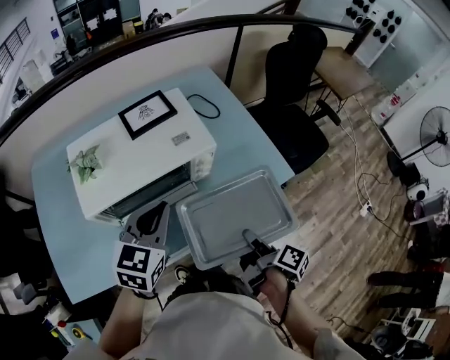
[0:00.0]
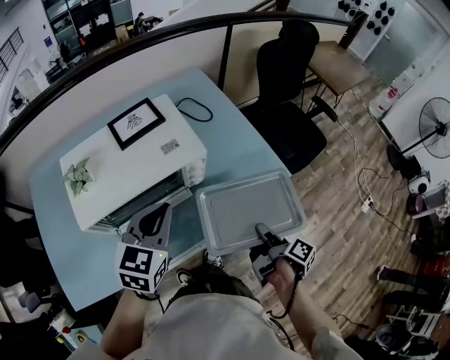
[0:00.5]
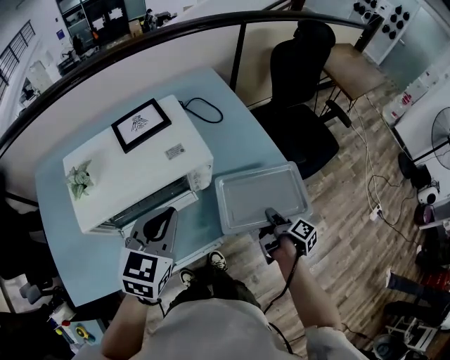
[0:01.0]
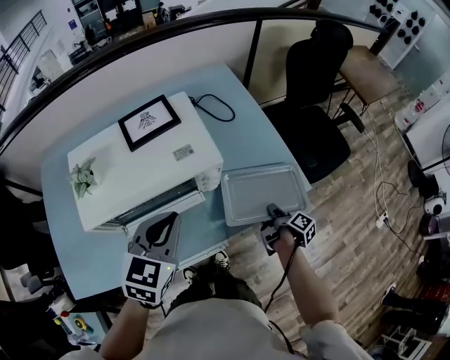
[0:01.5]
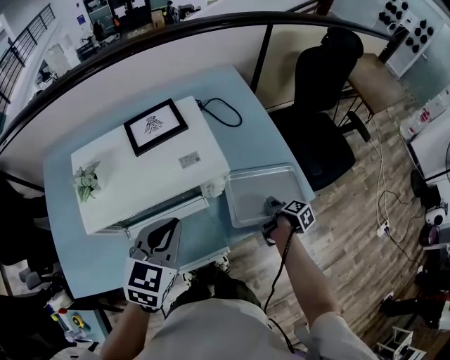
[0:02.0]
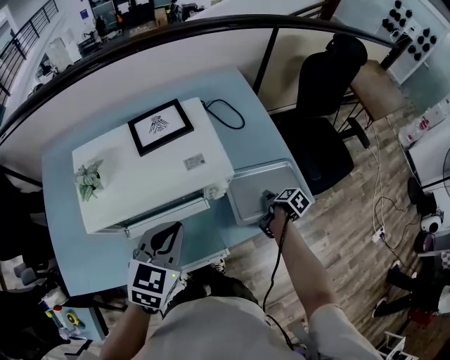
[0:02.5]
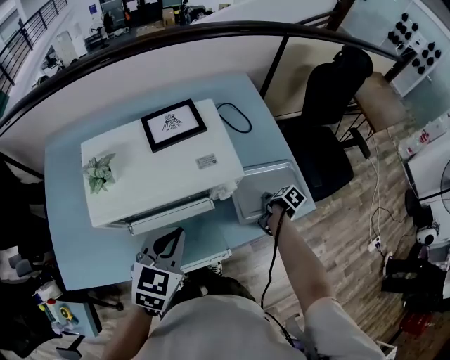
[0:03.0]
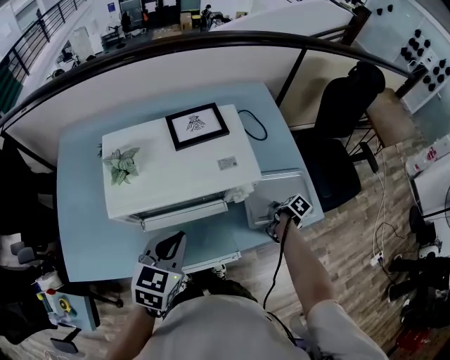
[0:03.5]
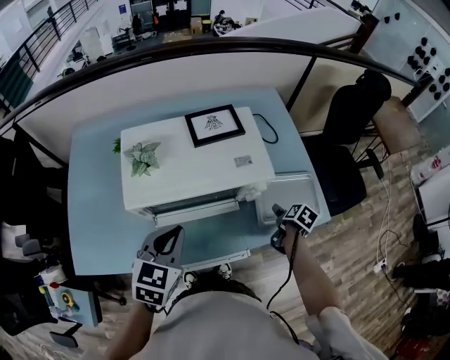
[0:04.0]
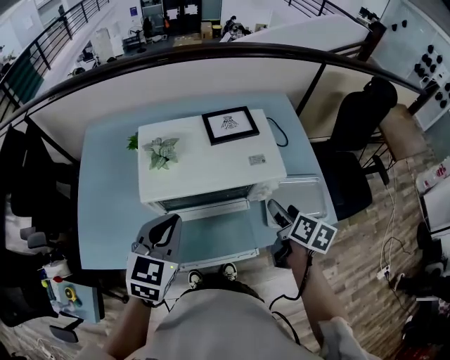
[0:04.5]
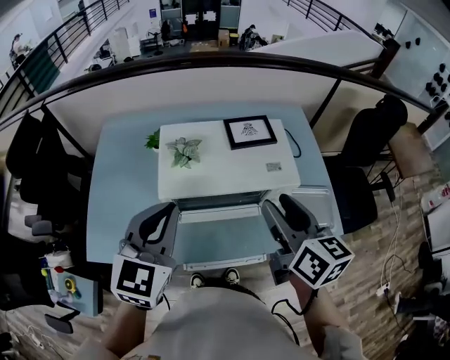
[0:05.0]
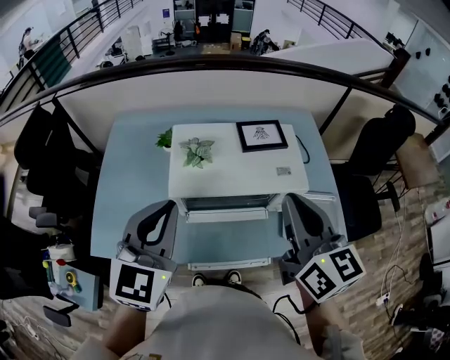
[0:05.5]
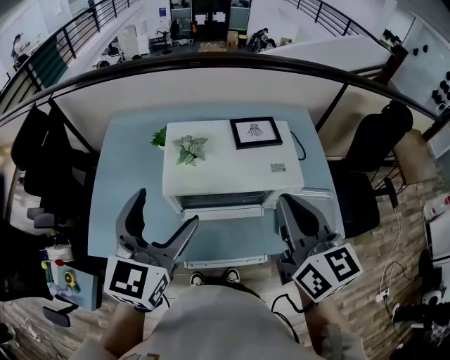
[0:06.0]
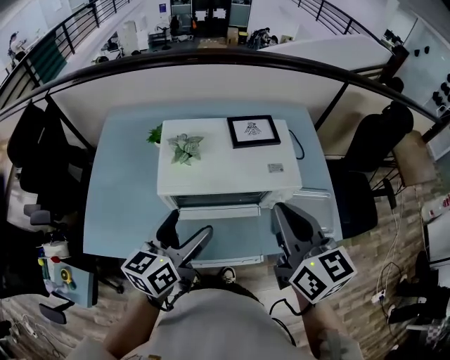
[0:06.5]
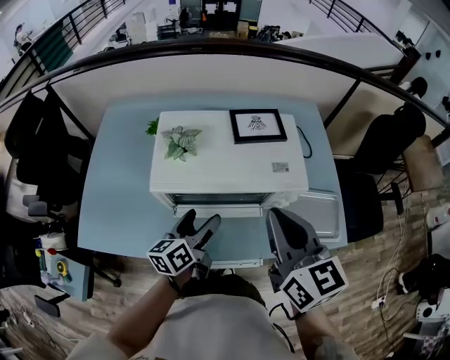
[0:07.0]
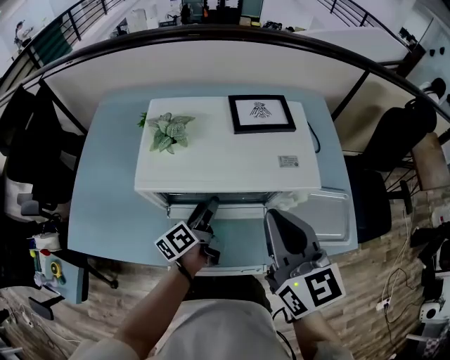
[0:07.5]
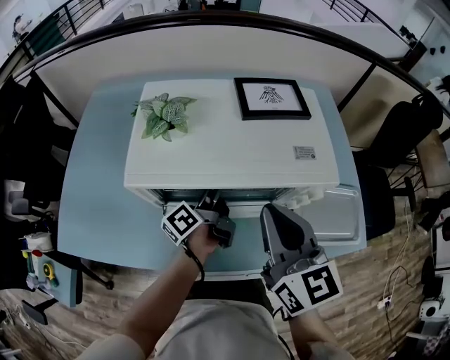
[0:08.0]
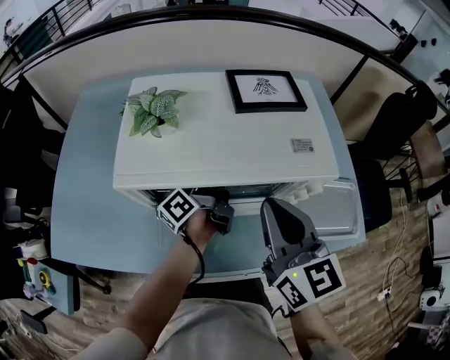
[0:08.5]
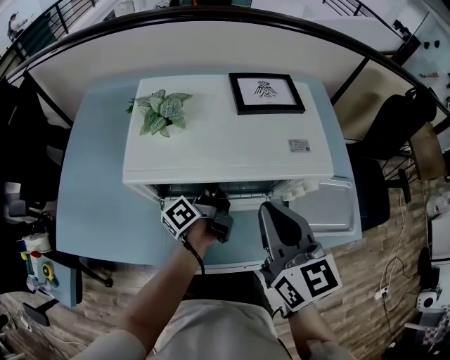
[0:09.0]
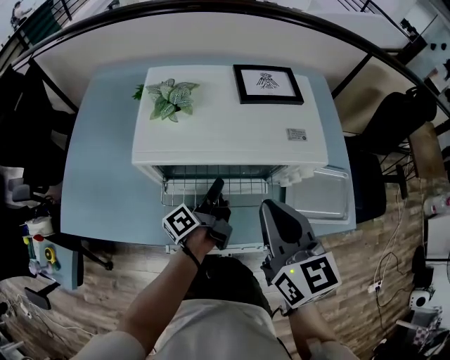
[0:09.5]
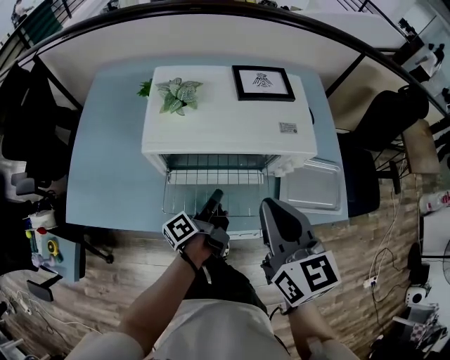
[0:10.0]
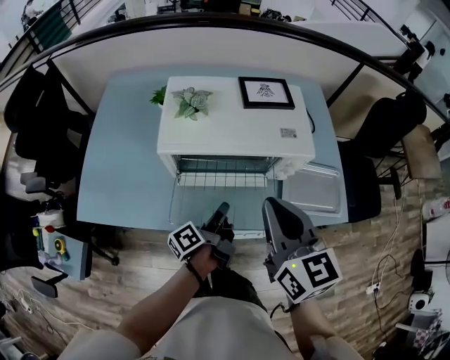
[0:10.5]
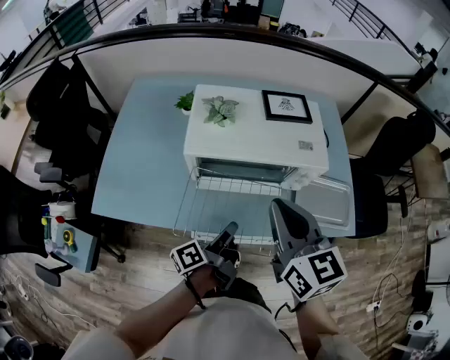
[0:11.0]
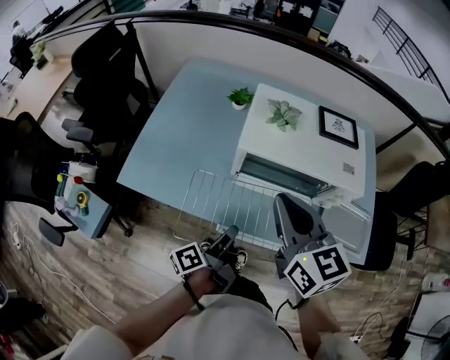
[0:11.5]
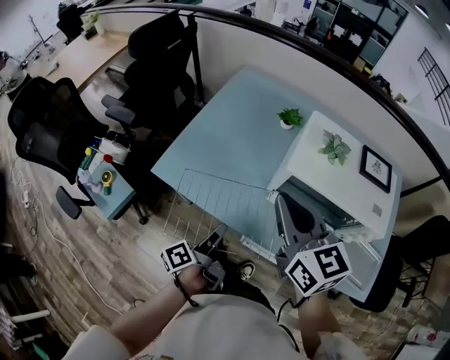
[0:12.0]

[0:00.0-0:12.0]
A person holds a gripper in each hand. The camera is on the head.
0:00.0 to 0:02.0: The right gripper heads forward, downward and to the right, covering some 30 cm, rotates roughly 30 degrees, and opens. Meanwhile the left gripper changes place by about 5 cm.
0:02.0 to 0:04.0: The right gripper goes some 5 cm to the left, rotates roughly 40 degrees, and opens. Meanwhile the left gripper travels to the left and backward by approximately 10 cm.
0:04.0 to 0:06.0: The left gripper is displaced upward by approximately 15 cm, turns by about 30 degrees, and opens. Meanwhile the right gripper heads upward, covering approximately 40 cm, points its fingers about 50 degrees further upward, and closes its fingers.
0:06.0 to 0:08.0: The right gripper moves downward, approximately 20 cm. The left gripper travels downward and forward by some 40 cm, rolls counterclockwise, seen from behind, by some 80 degrees, and closes up.
0:08.0 to 0:10.0: The left gripper shifts about 15 cm backward, and closes its fingers. The right gripper heads backward and upward, covering about 10 cm.
0:10.0 to 0:12.0: The left gripper moves approximately 30 cm, and turns by about 20 degrees; the right gripper changes place by approximately 25 cm, and swivels roughly 30 degrees.

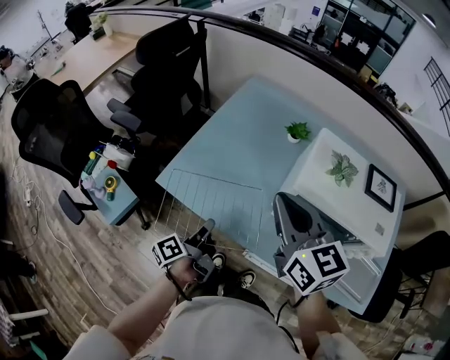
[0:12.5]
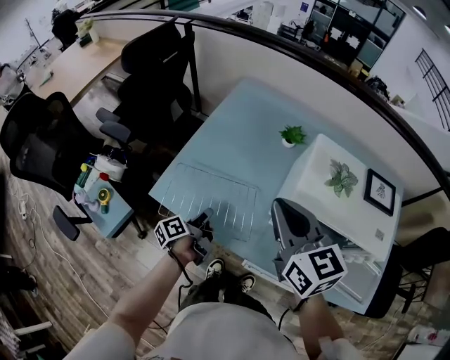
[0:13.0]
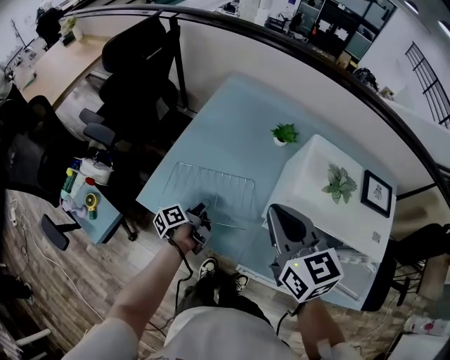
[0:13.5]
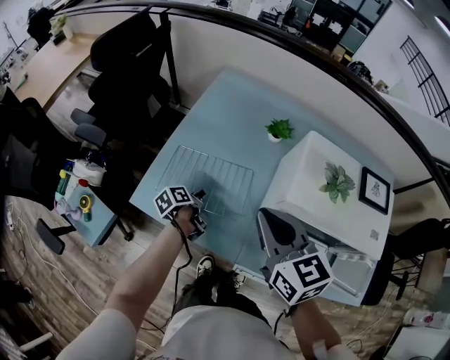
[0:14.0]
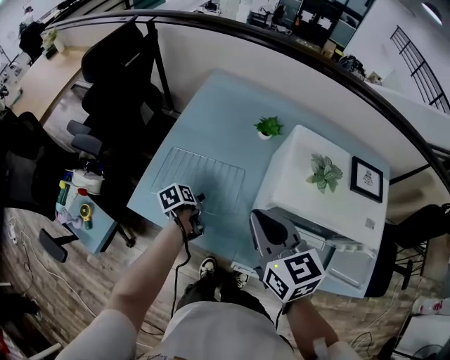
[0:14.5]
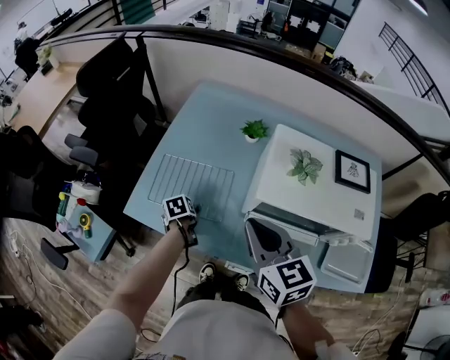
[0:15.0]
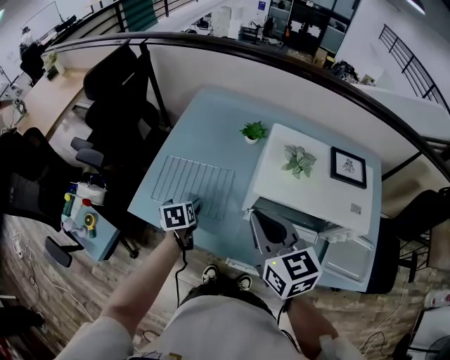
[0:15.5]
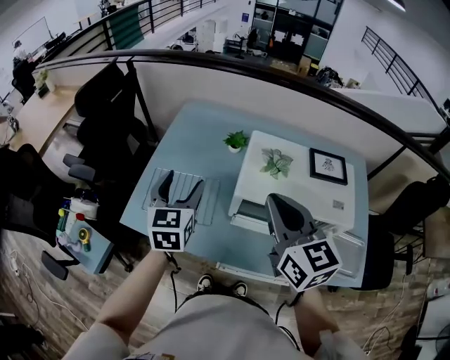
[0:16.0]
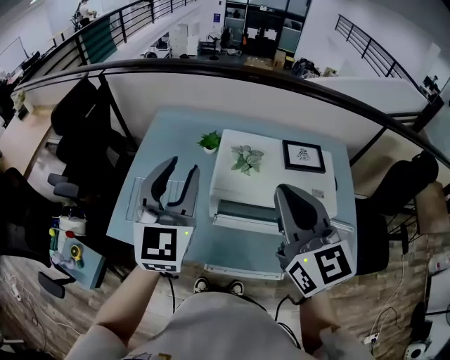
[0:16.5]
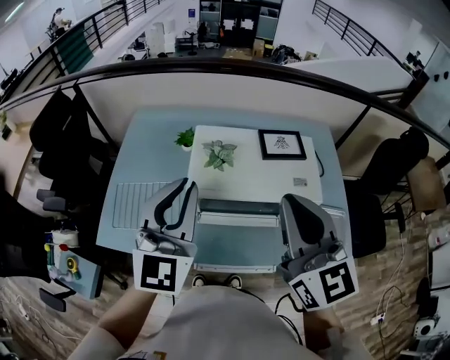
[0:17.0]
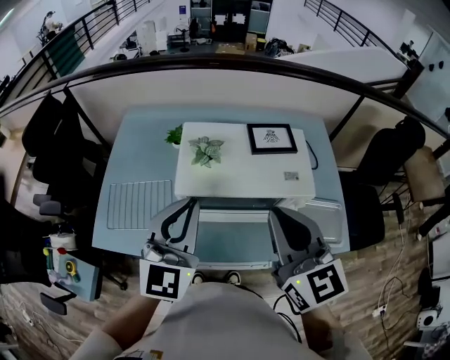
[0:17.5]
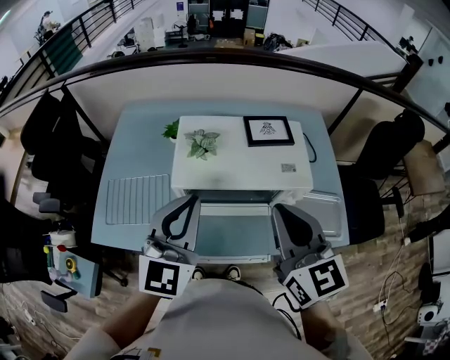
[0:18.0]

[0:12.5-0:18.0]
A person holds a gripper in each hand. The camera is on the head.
0:12.5 to 0:14.5: The right gripper shifts about 5 cm downward. The left gripper moves forward and downward, approximately 20 cm, tips its fingers downward by roughly 40 degrees, and opens its fingers.
0:14.5 to 0:16.0: The right gripper shifts some 15 cm upward and to the right. Meanwhile the left gripper is displaced upward by roughly 35 cm, and angles its fingers upward, by some 40 degrees.
0:16.0 to 0:18.0: Both grippers move to the right and backward, about 20 cm. The left gripper rotates about 30 degrees, and closes up.

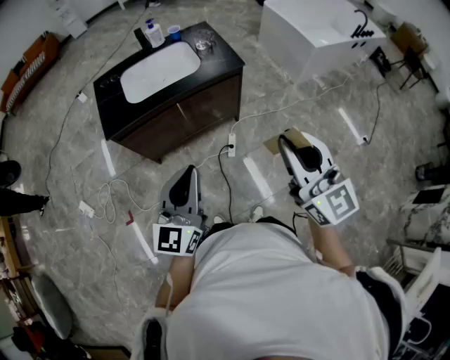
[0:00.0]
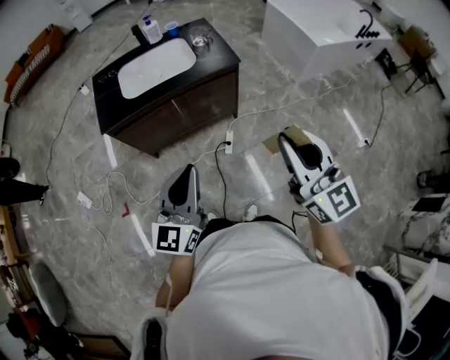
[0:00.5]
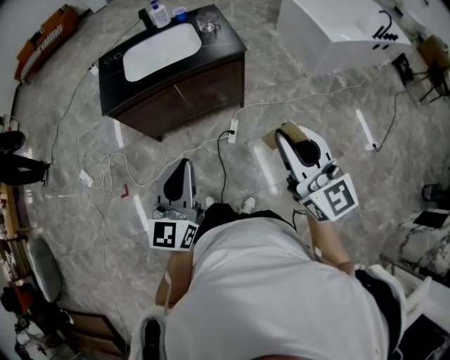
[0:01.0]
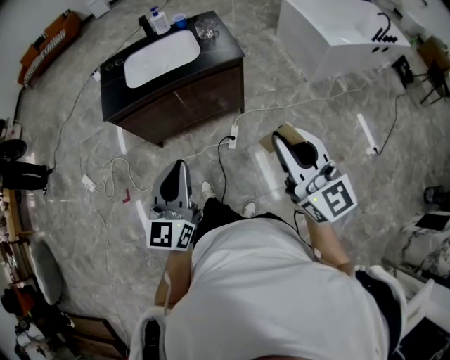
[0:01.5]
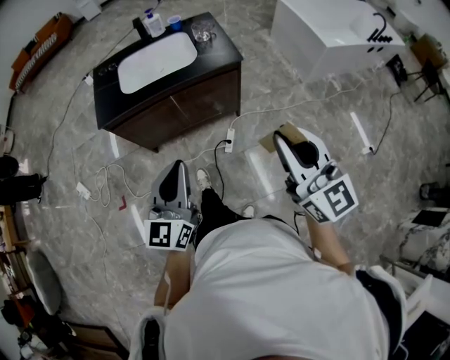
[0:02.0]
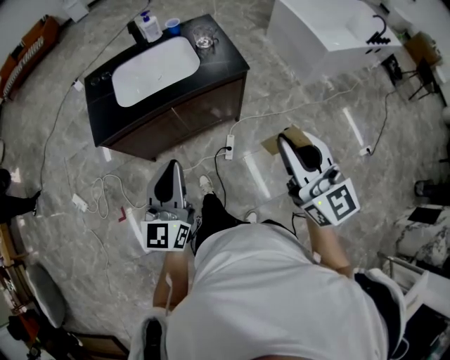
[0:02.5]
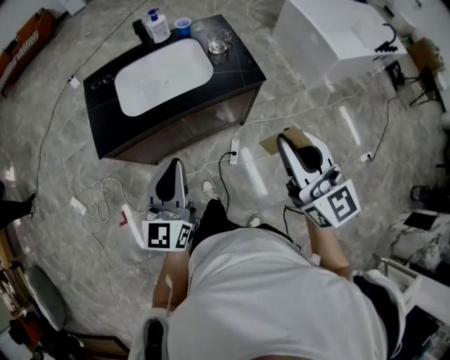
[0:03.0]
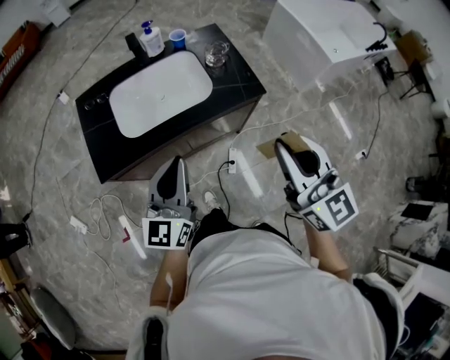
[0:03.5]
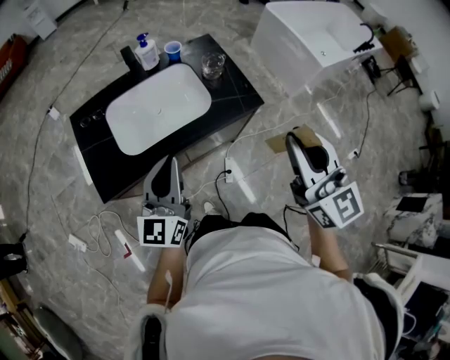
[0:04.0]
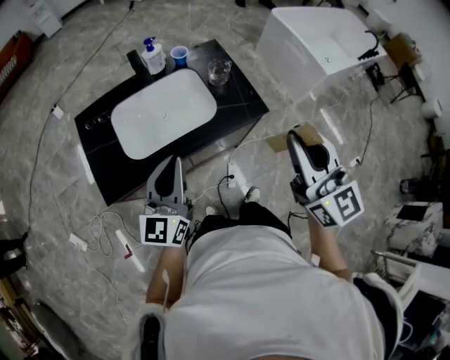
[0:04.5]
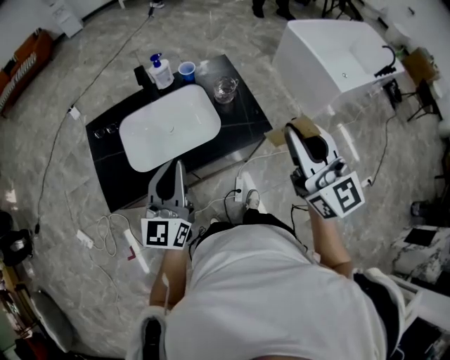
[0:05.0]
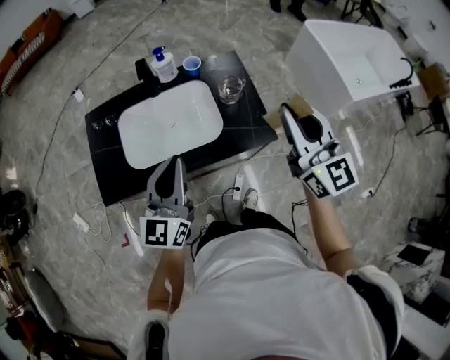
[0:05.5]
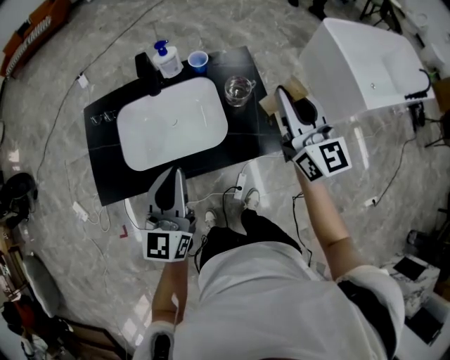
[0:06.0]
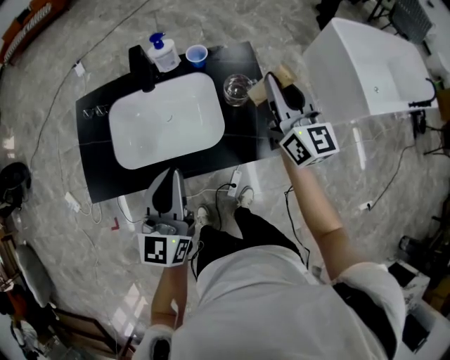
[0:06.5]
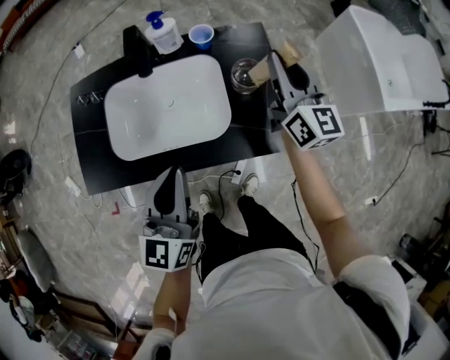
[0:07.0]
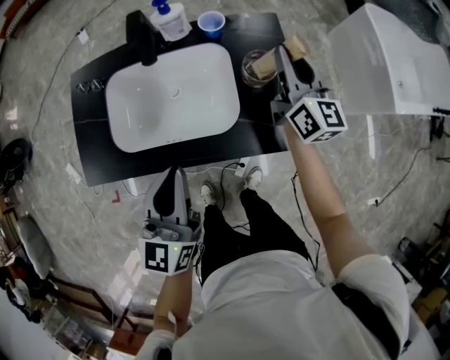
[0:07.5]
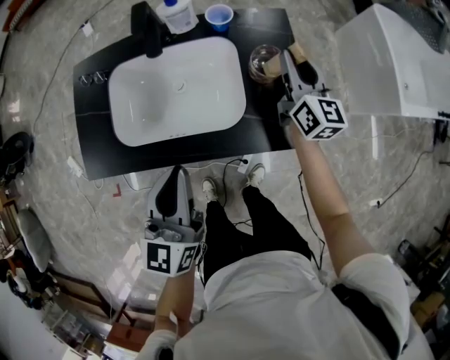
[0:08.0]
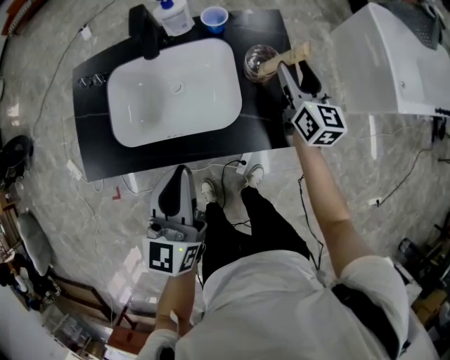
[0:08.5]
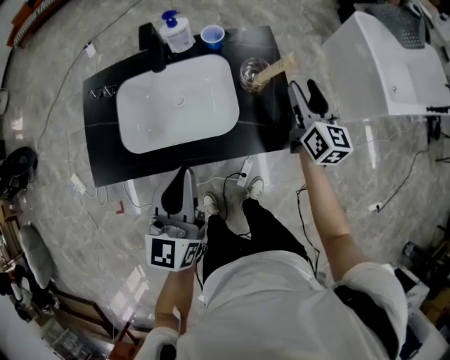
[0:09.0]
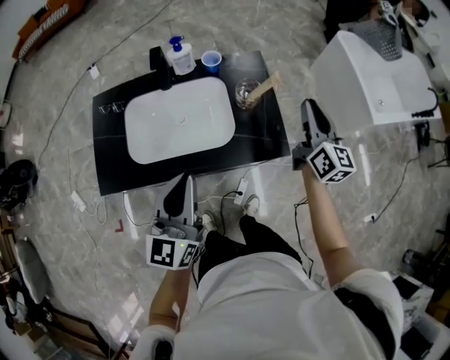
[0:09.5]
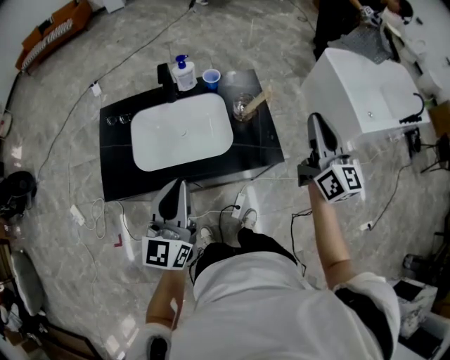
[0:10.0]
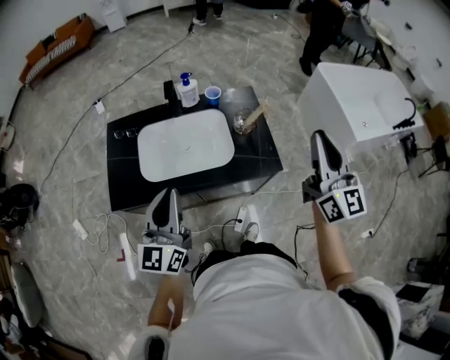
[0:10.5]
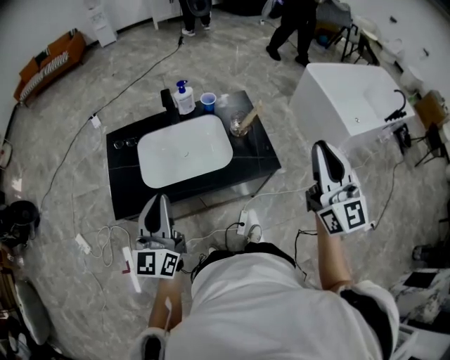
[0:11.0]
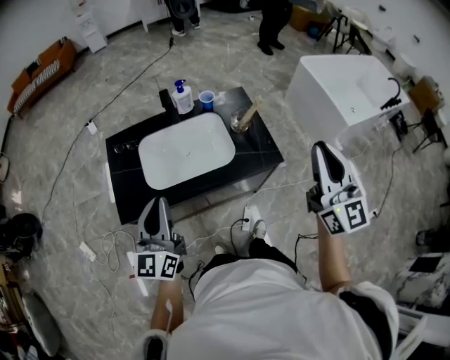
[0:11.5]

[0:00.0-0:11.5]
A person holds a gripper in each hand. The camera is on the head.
0:00.0 to 0:02.0: Both grippers travel together to the right, approximately 5 cm.
0:02.0 to 0:04.0: Both grippers travel together forward and to the left, about 35 cm.
0:04.0 to 0:06.0: The right gripper goes approximately 30 cm forward, while the left gripper goes approximately 15 cm forward and to the right.
0:06.0 to 0:07.5: The left gripper moves downward, some 5 cm; the right gripper goes approximately 20 cm downward and forward.
0:07.5 to 0:09.5: The left gripper goes roughly 5 cm upward. The right gripper travels backward, to the right and upward by some 15 cm, and opens and closes again.
0:09.5 to 0:11.5: The left gripper is displaced to the left and backward by some 15 cm, while the right gripper goes roughly 30 cm backward and upward, and changes its angle by approximately 20 degrees.
